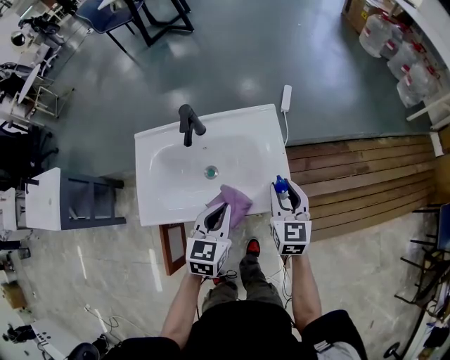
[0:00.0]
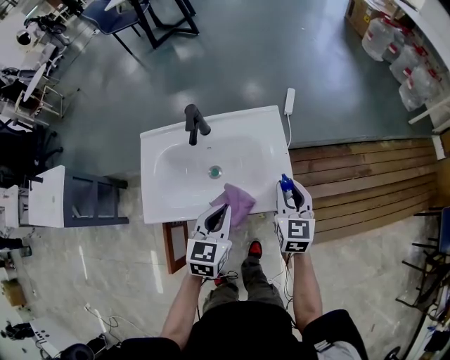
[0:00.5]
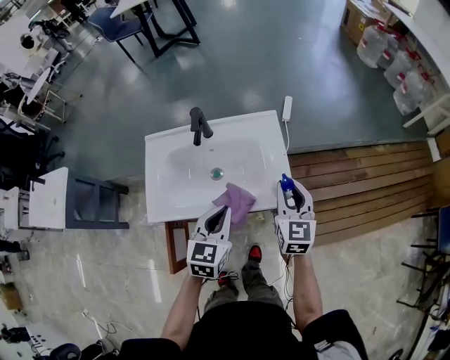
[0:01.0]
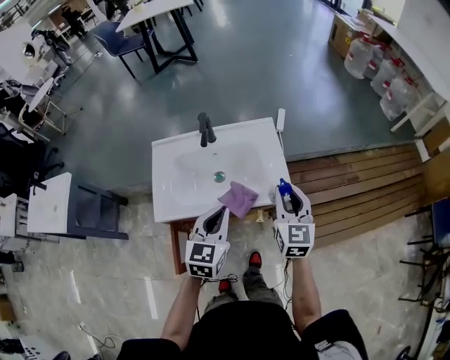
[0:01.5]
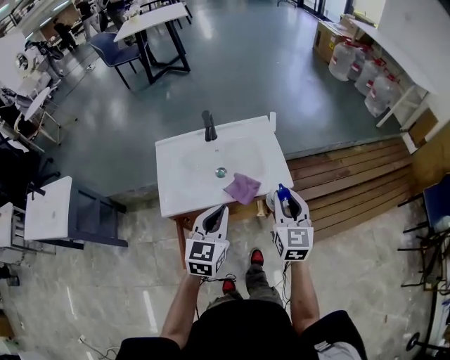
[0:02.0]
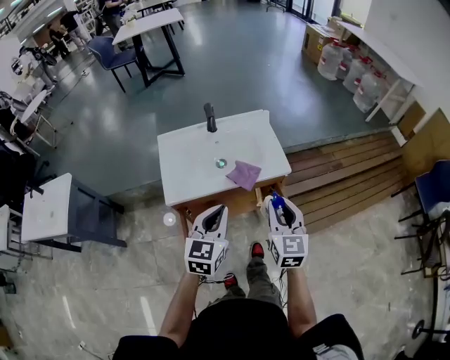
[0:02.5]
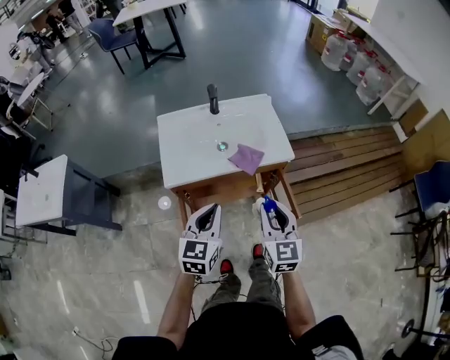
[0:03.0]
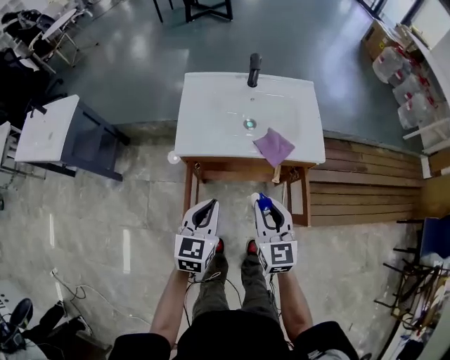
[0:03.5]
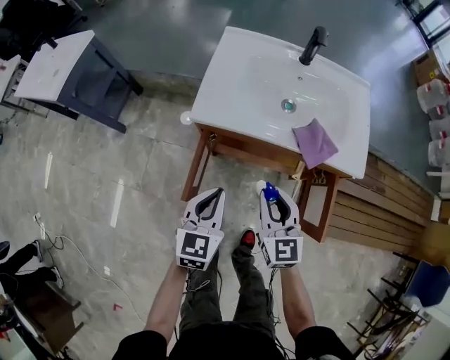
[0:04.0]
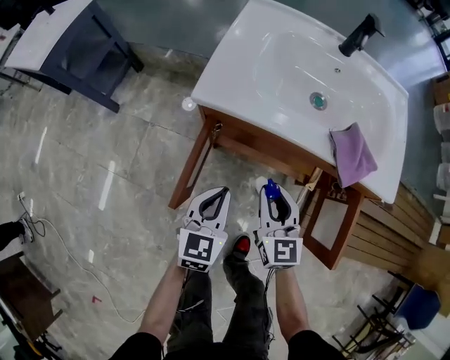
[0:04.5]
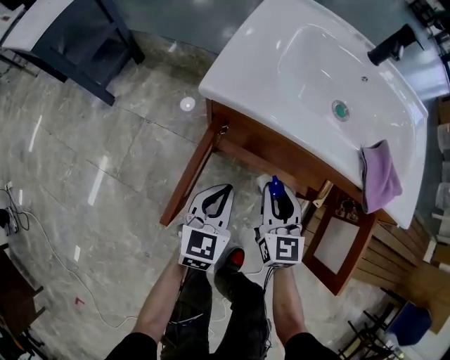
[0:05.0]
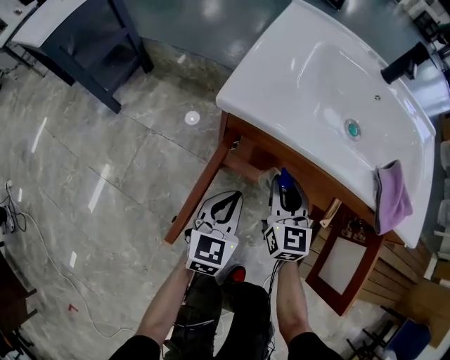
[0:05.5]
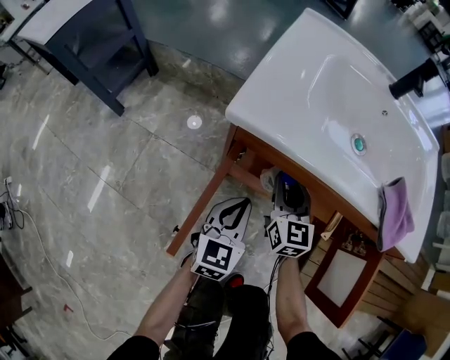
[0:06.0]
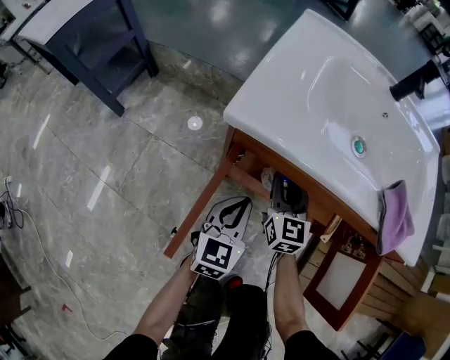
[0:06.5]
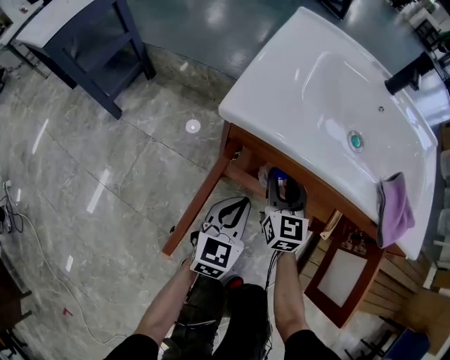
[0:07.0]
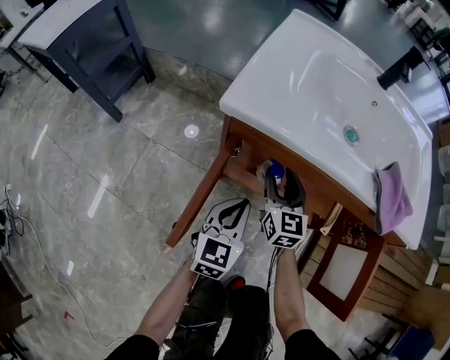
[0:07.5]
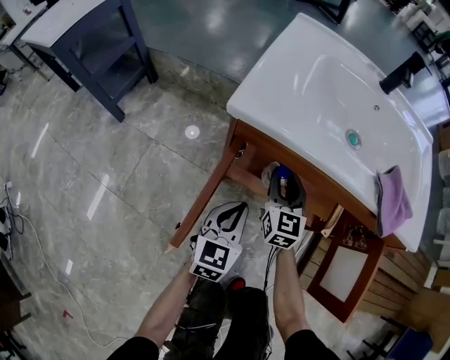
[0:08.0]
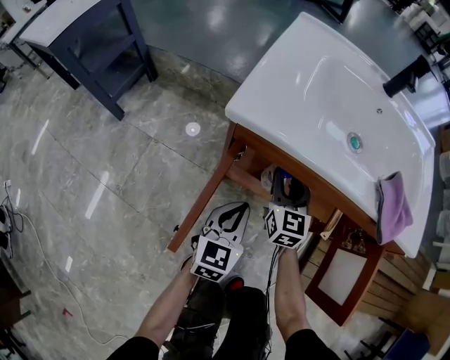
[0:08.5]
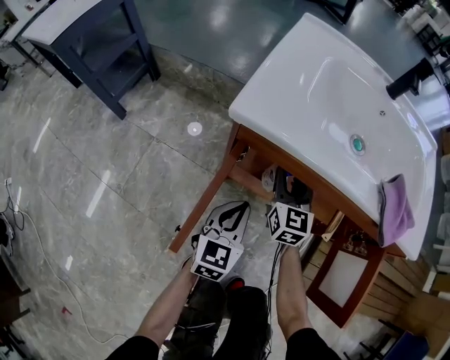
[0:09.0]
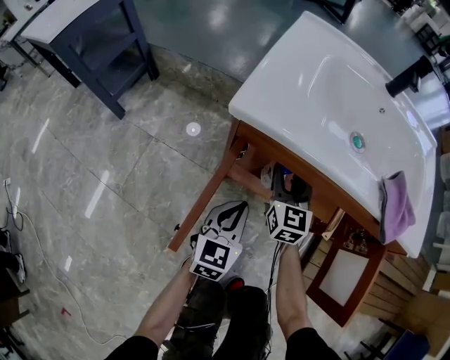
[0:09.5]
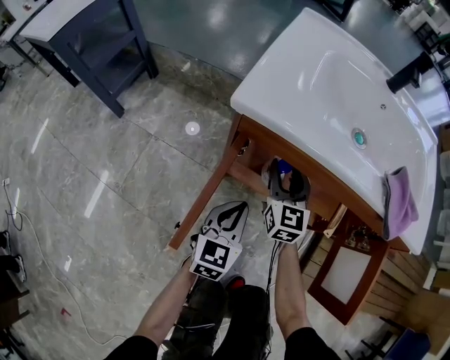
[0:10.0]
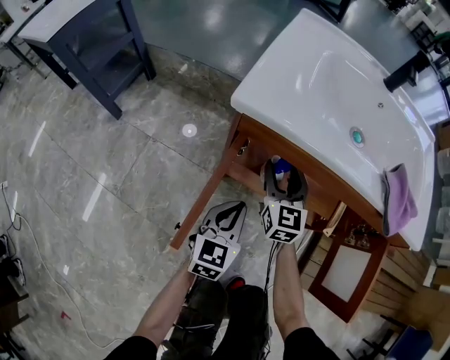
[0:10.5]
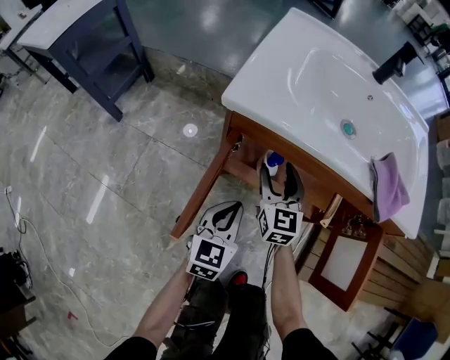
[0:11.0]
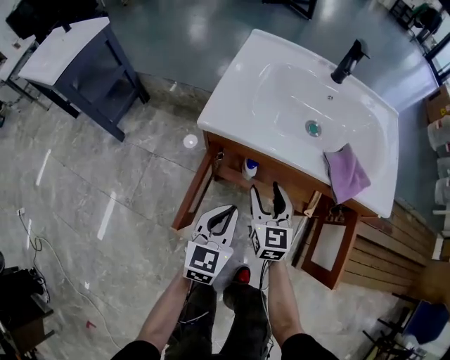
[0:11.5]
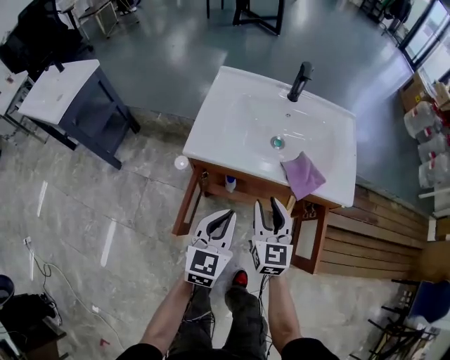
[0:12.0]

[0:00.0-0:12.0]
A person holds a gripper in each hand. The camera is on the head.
0:00.0 to 0:02.0: The right gripper moves backward and upward, some 20 cm; the left gripper heads backward, upward and to the left, covering about 20 cm.
0:02.0 to 0:04.0: The right gripper changes place by some 30 cm, and changes its angle by about 30 degrees. Meanwhile the left gripper moves downward, some 20 cm, and swivels about 20 degrees.
0:04.0 to 0:06.0: The left gripper travels downward by some 25 cm, while the right gripper shifts some 30 cm downward and forward.
0:06.0 to 0:10.0: The grippers stay close to where they were, moving slightly.
0:10.0 to 0:12.0: The right gripper heads upward, backward and to the right, covering some 30 cm. The left gripper shifts some 25 cm upward.

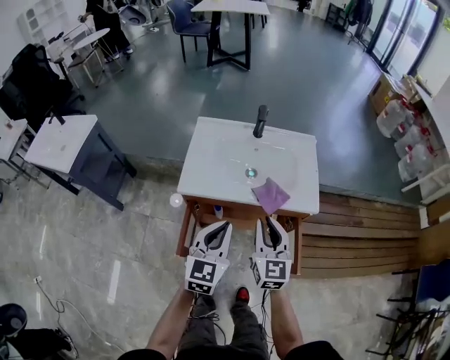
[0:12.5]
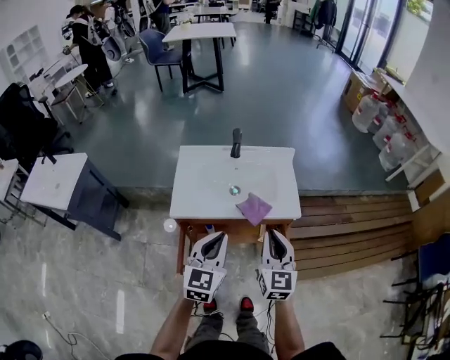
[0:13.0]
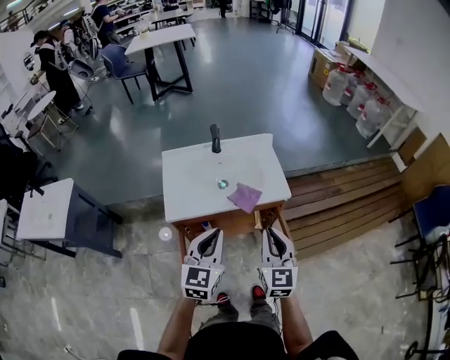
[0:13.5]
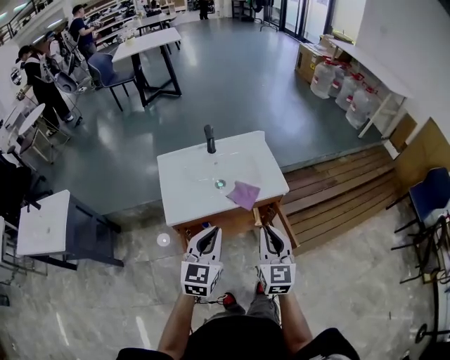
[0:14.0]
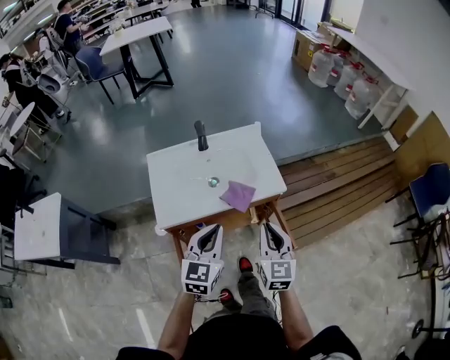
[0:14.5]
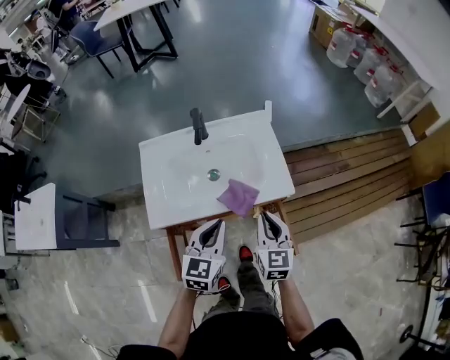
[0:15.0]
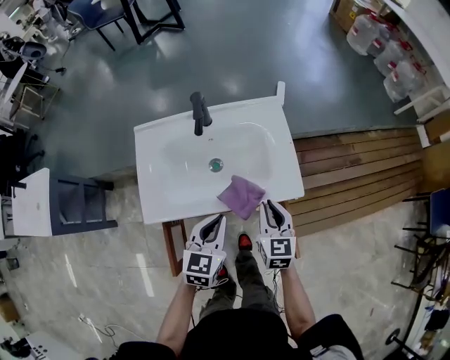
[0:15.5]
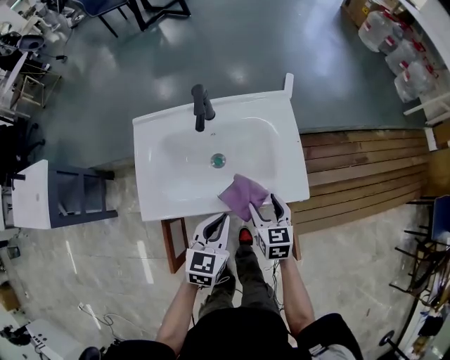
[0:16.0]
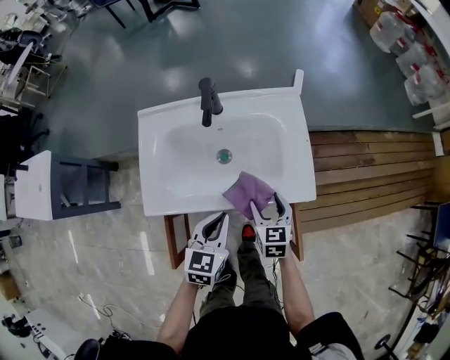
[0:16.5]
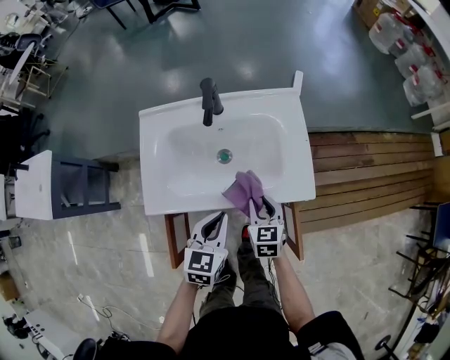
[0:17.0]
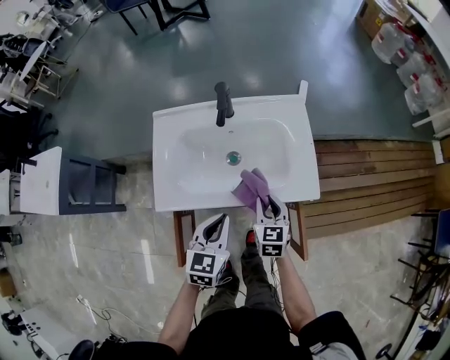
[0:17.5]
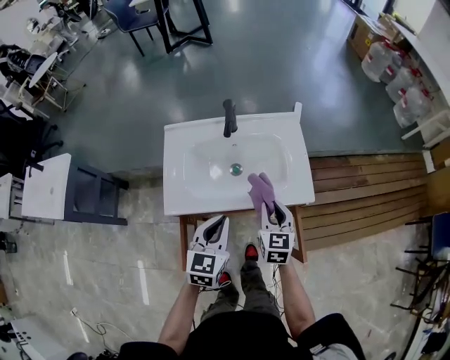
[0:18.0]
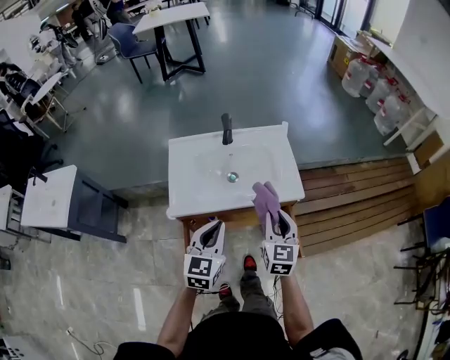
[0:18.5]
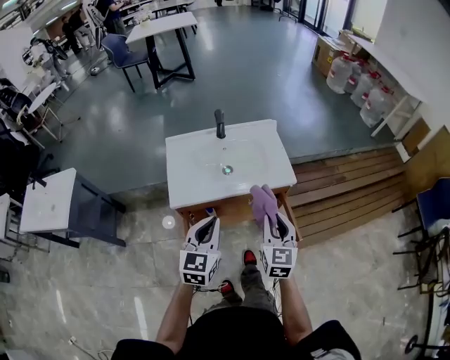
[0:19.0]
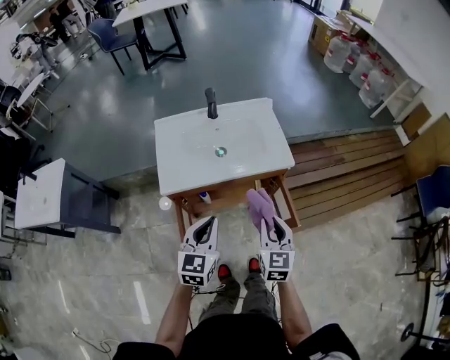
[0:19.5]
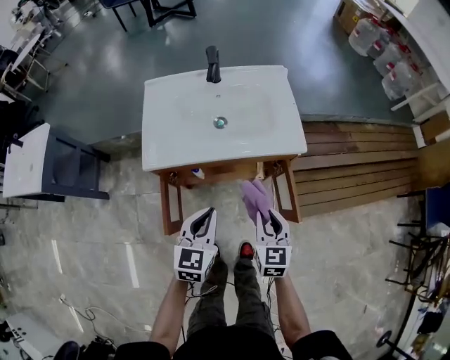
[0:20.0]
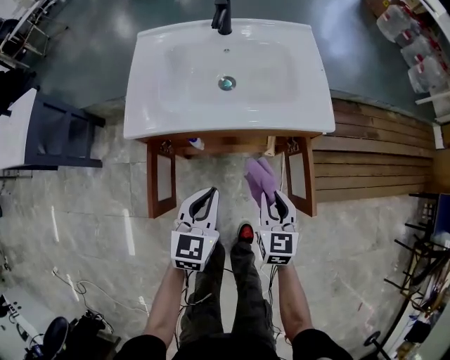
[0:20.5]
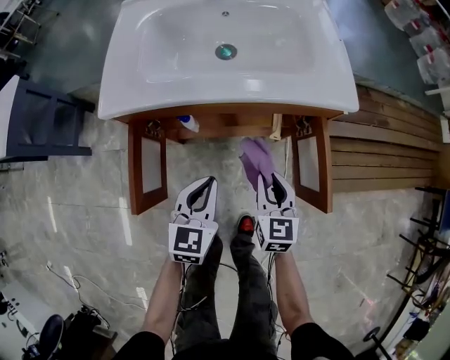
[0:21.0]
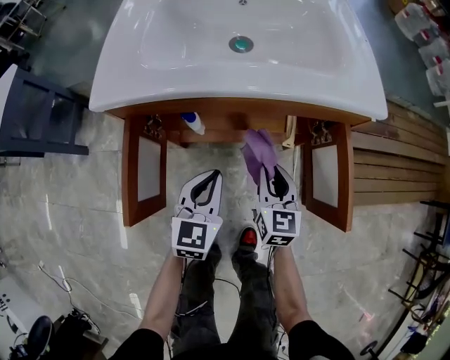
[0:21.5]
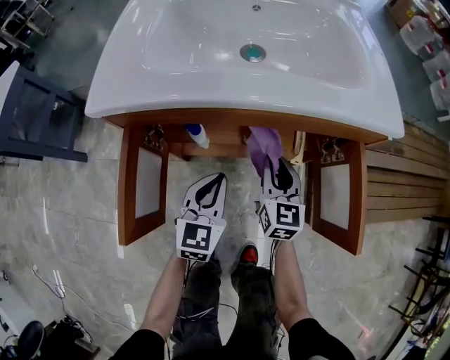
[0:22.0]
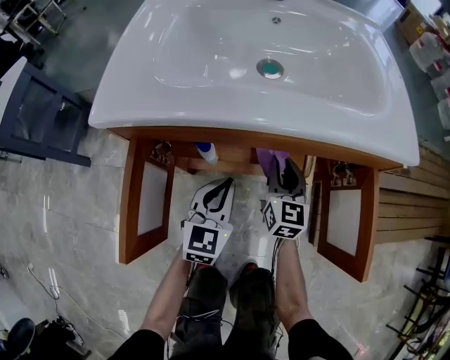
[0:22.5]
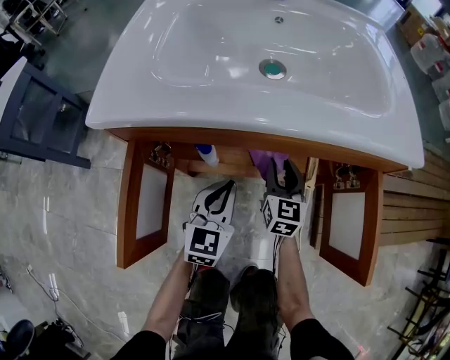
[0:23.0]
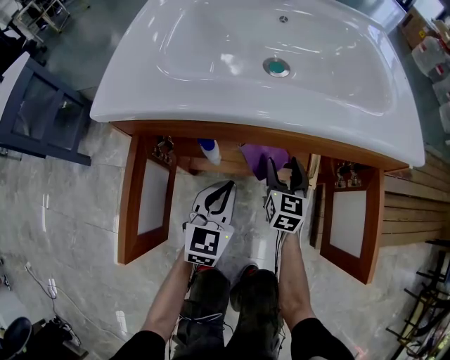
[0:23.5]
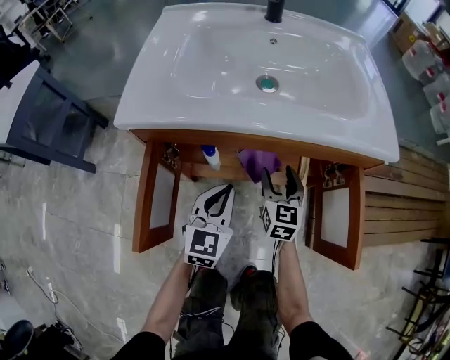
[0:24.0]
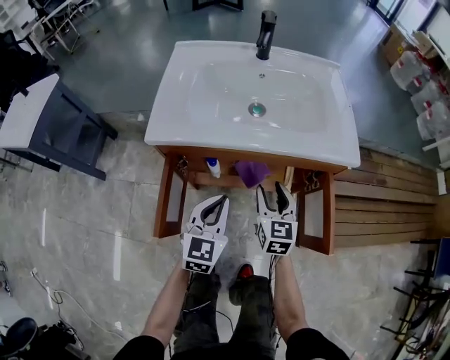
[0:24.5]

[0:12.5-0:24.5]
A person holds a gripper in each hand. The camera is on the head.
0:12.5 to 0:14.5: The left gripper travels upward by approximately 5 cm, and turns by some 20 degrees; the right gripper is displaced to the right by some 10 cm, and changes its angle by about 20 degrees.
0:14.5 to 0:16.5: Both grippers move downward and forward, some 25 cm. The left gripper turns by about 20 degrees. The right gripper changes its angle by approximately 30 degrees, and opens its fingers.
0:16.5 to 0:18.5: The left gripper goes about 20 cm upward, backward and to the left, while the right gripper is displaced upward and backward by approximately 25 cm, swivels some 20 degrees, and closes its fingers.
0:18.5 to 0:20.5: Both grippers move downward, some 25 cm.
0:20.5 to 0:22.5: The right gripper shifts about 25 cm downward and forward. The left gripper is displaced downward by approximately 25 cm.
0:22.5 to 0:24.5: The right gripper moves upward and backward, approximately 15 cm, and opens. The left gripper heads upward, covering approximately 15 cm.

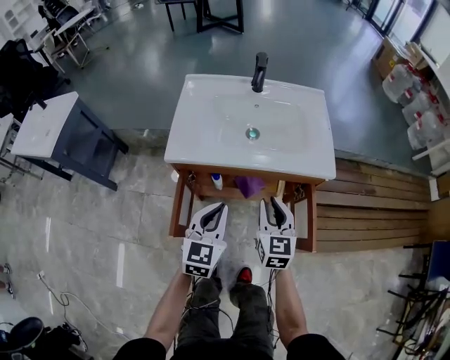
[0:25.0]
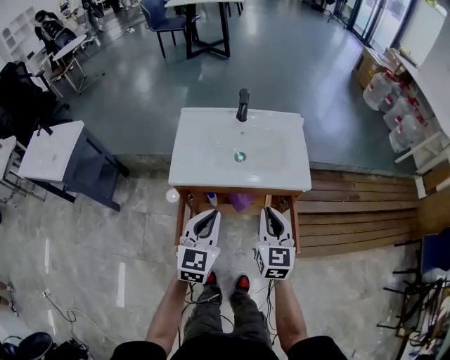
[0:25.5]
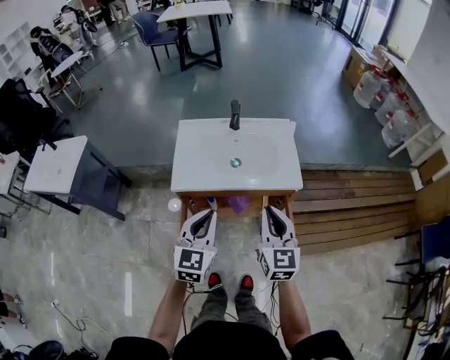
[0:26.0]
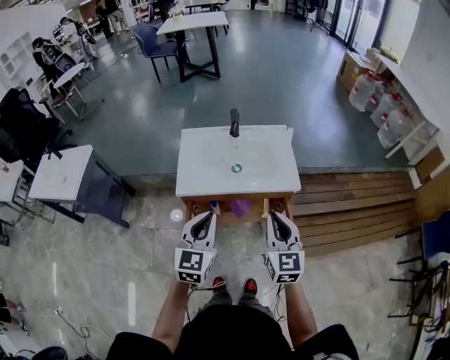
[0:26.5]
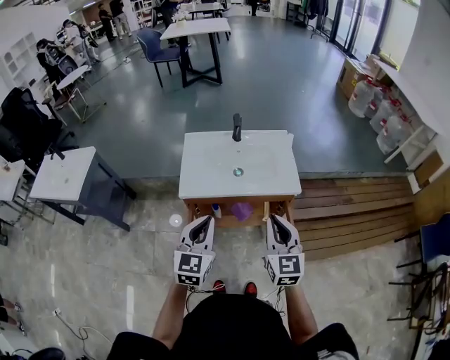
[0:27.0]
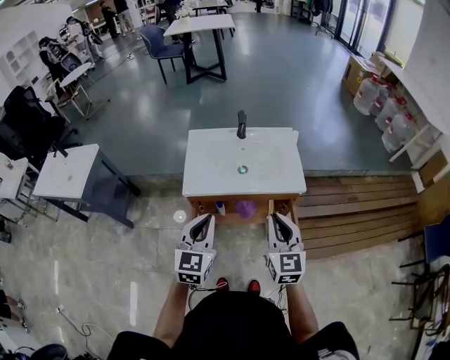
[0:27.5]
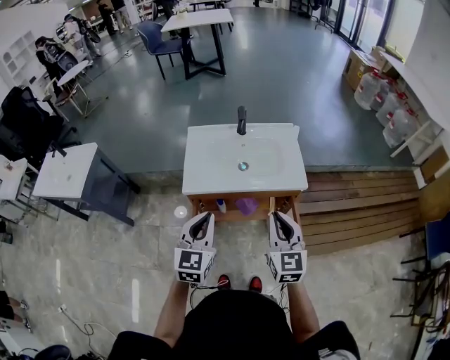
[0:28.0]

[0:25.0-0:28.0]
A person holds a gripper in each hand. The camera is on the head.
0:25.0 to 0:26.5: Both grippers move upward, roughly 25 cm.
0:26.5 to 0:28.0: The grippers make only small movements.
